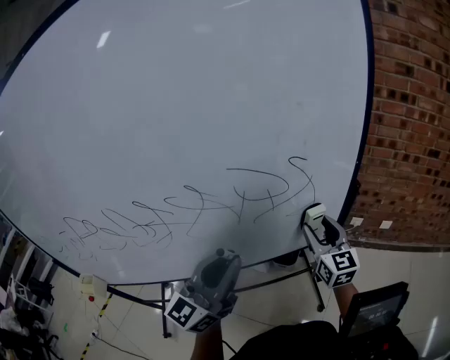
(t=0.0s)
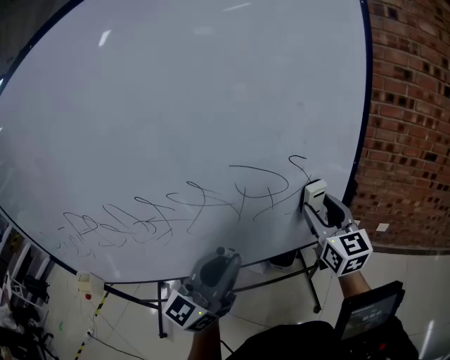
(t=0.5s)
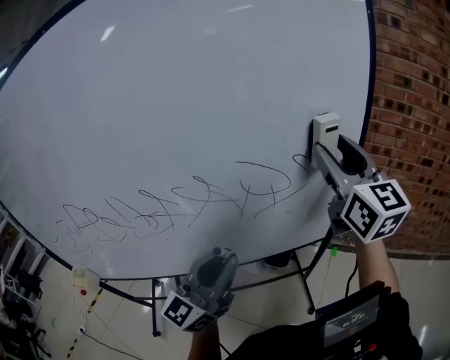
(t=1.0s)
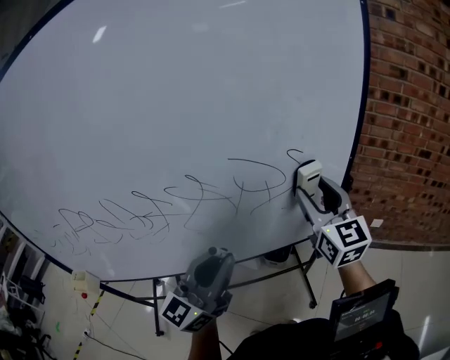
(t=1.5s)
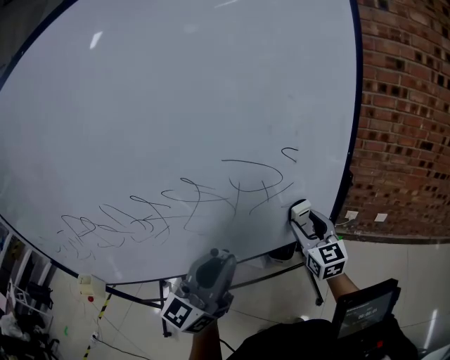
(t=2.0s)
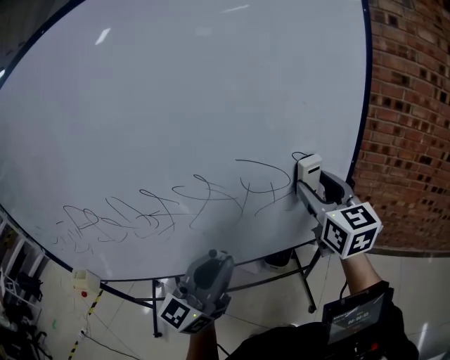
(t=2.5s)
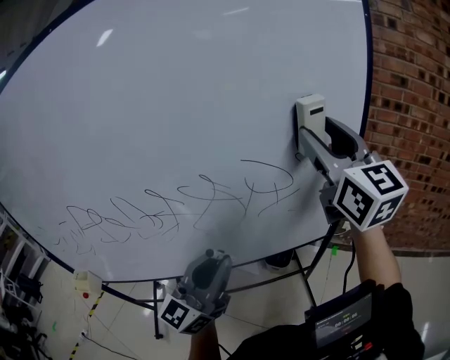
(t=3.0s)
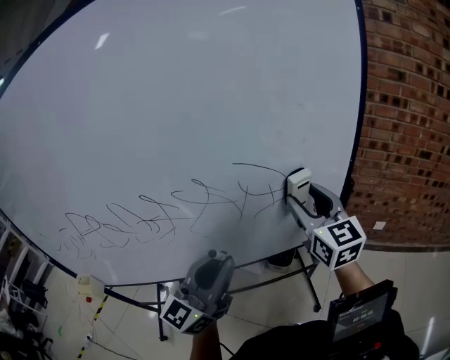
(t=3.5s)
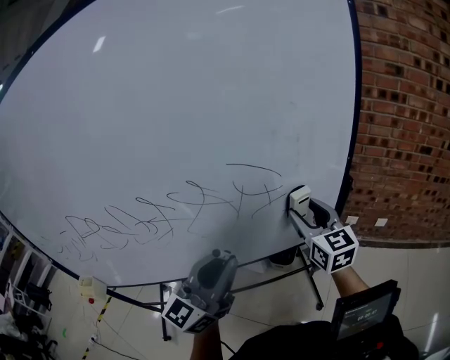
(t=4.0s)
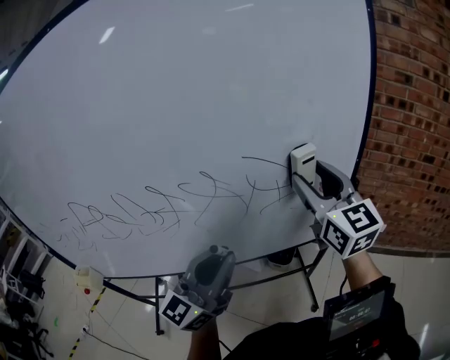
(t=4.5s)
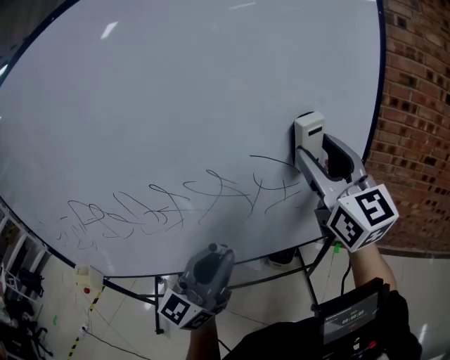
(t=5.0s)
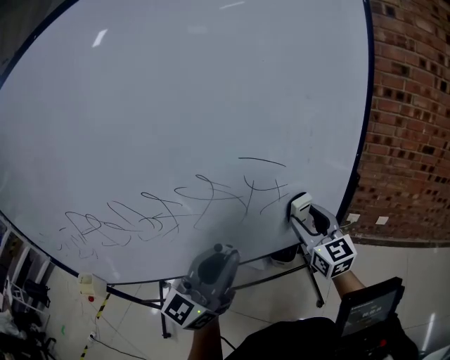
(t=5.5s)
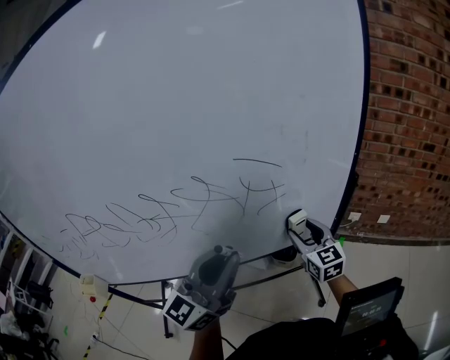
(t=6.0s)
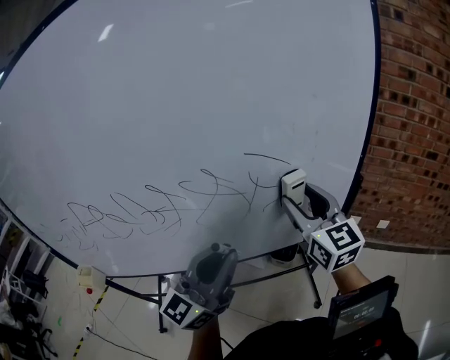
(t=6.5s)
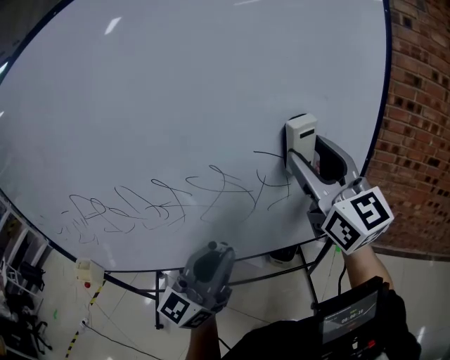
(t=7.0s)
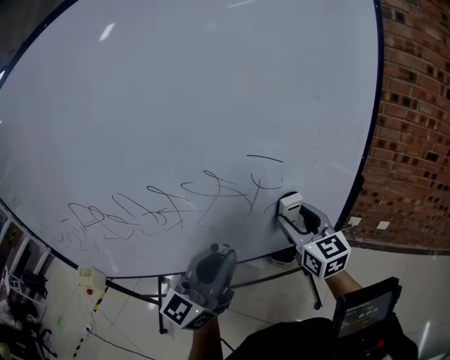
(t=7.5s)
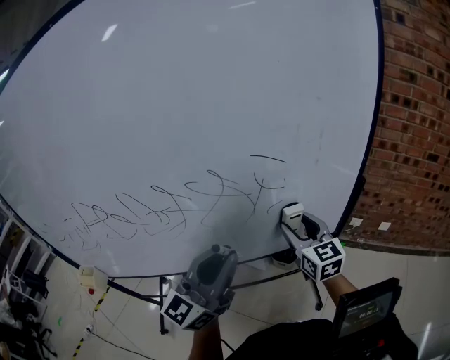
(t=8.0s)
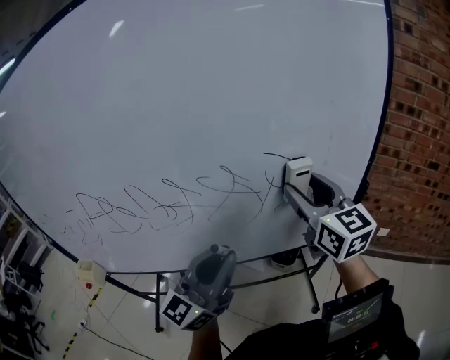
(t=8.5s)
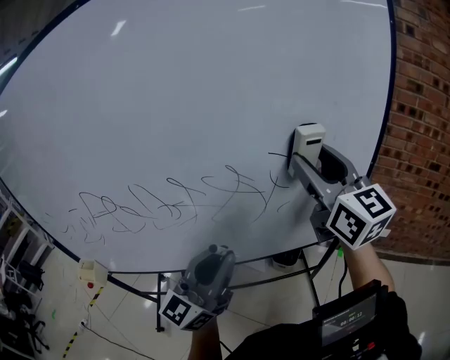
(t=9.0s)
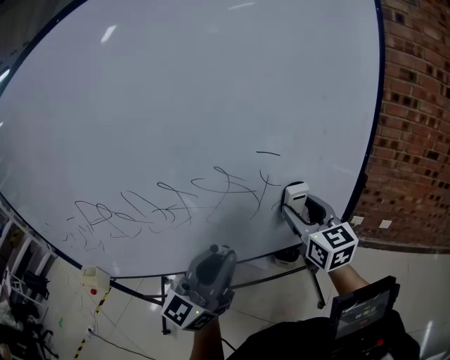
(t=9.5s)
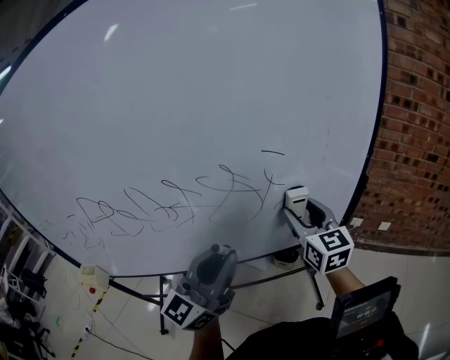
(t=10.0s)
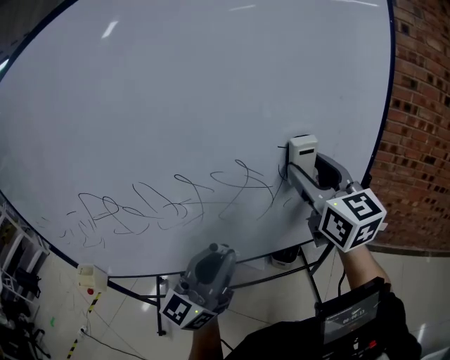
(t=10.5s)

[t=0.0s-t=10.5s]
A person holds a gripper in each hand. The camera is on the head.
t=0.0s to t=2.0s: The right gripper reaches about 25 cm upward, then returns.
t=2.0s to t=4.0s: The right gripper travels upward and back again, some 35 cm each way.
t=4.0s to t=6.5s: The right gripper goes up and down, roughly 30 cm each way, reversing 2 times.
t=6.5s to t=8.5s: The right gripper moves up and down over approximately 25 cm, changing direction 2 times.
t=8.5s to t=10.5s: The right gripper goes up and down, some 20 cm each way, reversing 2 times.

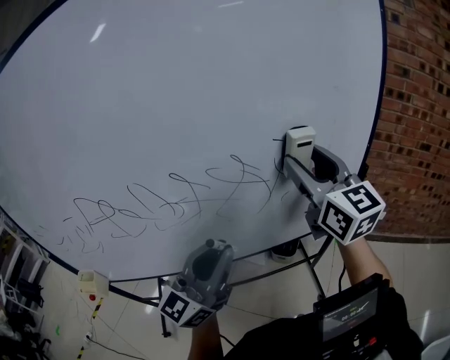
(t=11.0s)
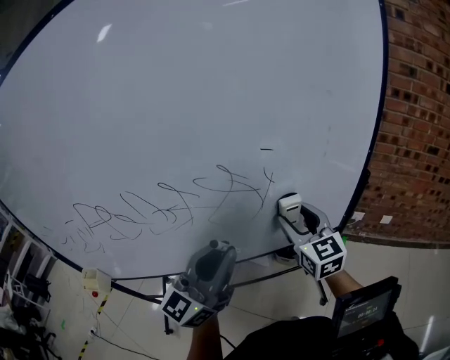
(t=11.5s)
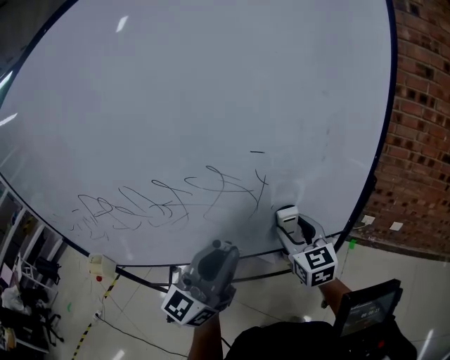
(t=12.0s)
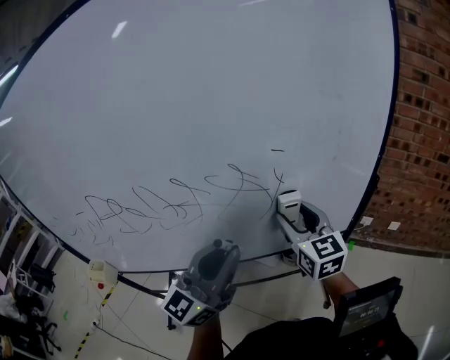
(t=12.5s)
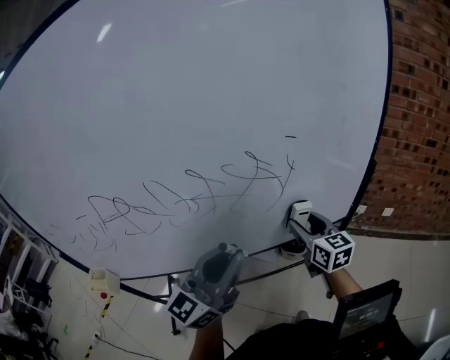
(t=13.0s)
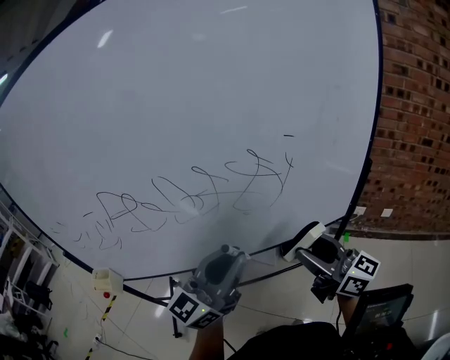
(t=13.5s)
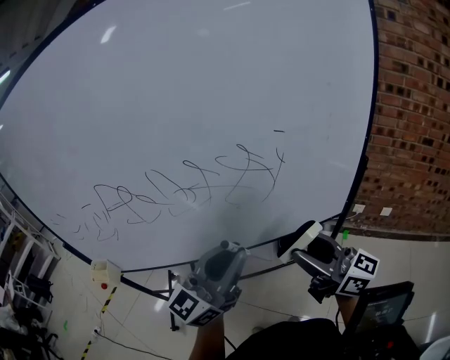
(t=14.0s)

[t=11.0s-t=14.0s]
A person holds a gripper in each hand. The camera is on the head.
t=11.0s to t=12.5s: The right gripper heads downward, covering approximately 15 cm.
t=12.5s to t=14.0s: The right gripper moves backward, about 15 cm, and changes its angle by about 40 degrees, while the left gripper is displaced backward by some 5 cm.

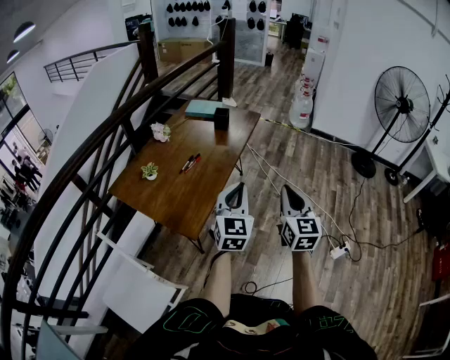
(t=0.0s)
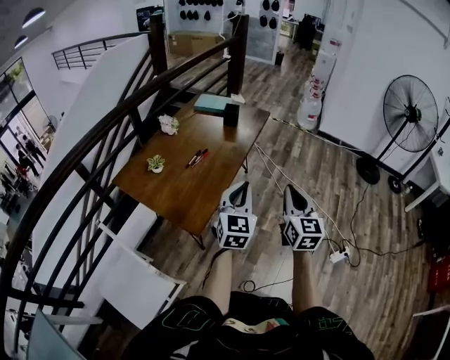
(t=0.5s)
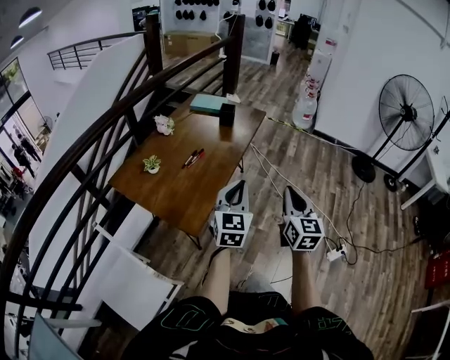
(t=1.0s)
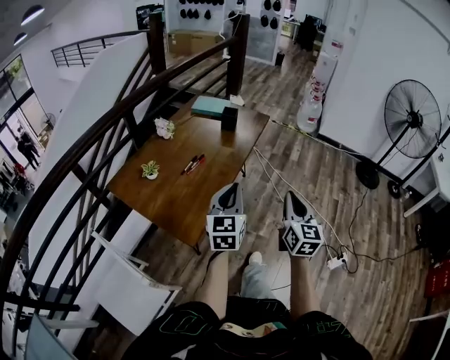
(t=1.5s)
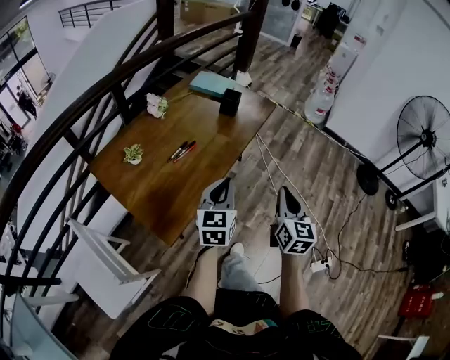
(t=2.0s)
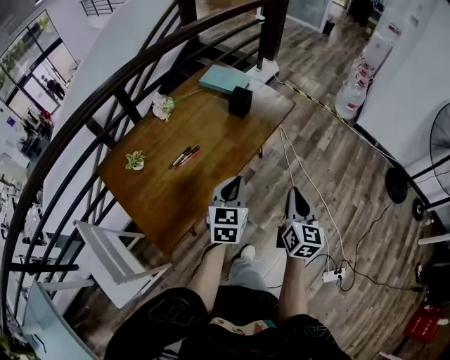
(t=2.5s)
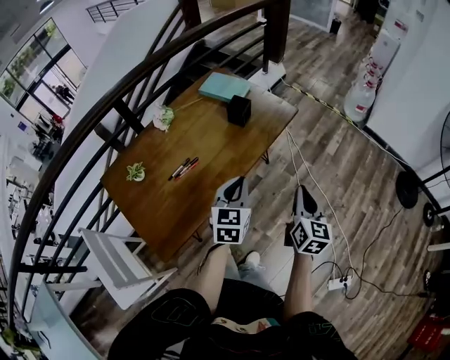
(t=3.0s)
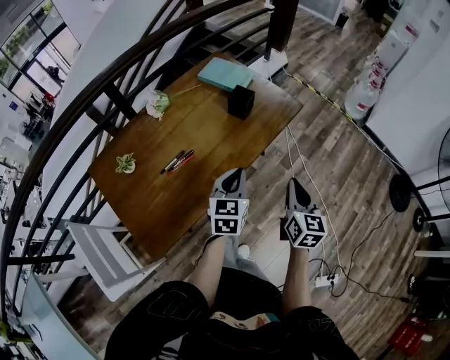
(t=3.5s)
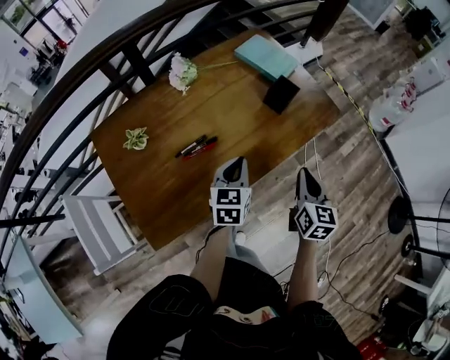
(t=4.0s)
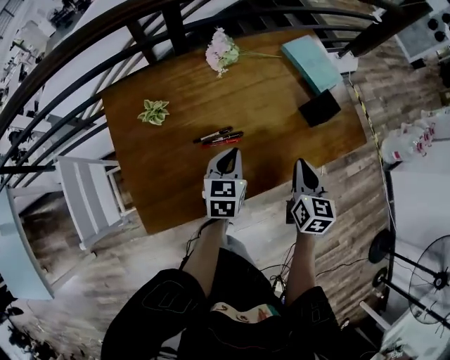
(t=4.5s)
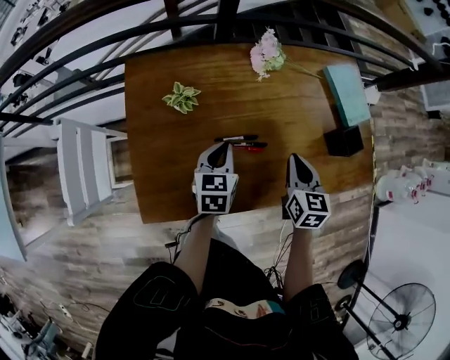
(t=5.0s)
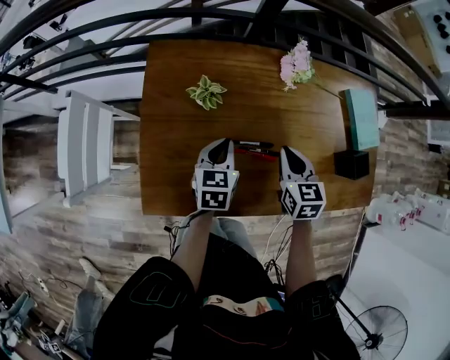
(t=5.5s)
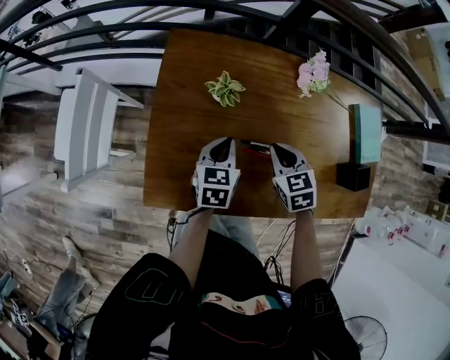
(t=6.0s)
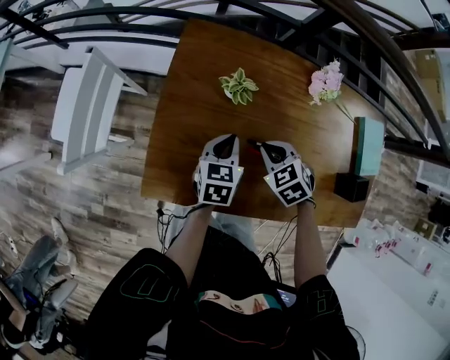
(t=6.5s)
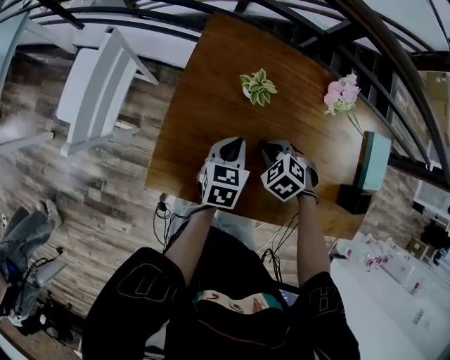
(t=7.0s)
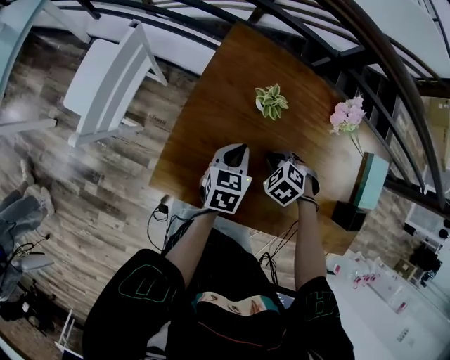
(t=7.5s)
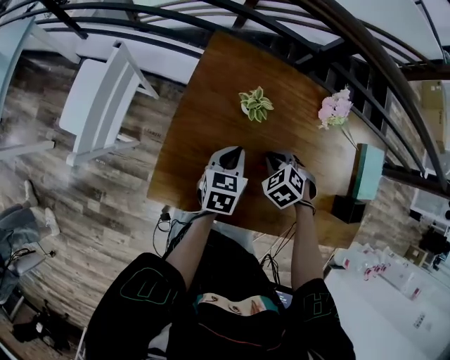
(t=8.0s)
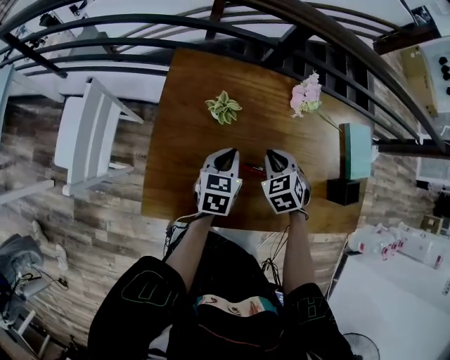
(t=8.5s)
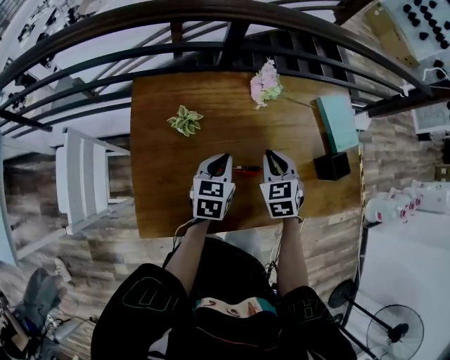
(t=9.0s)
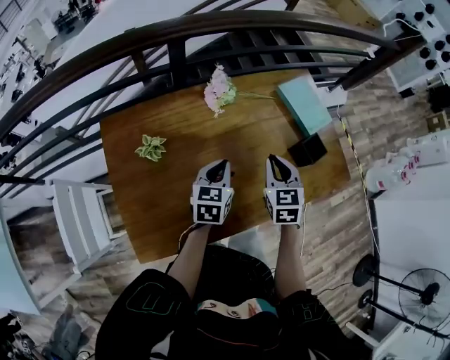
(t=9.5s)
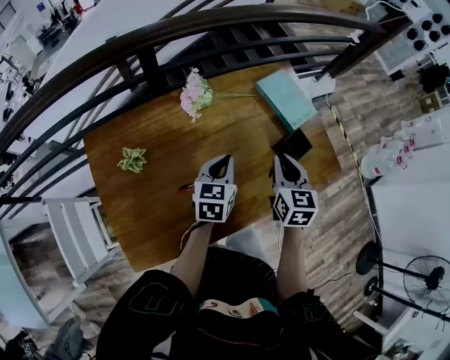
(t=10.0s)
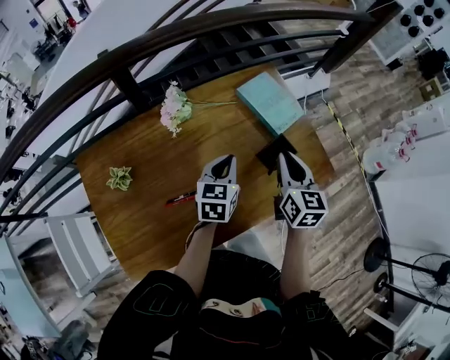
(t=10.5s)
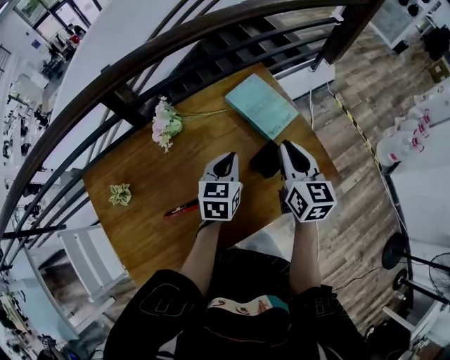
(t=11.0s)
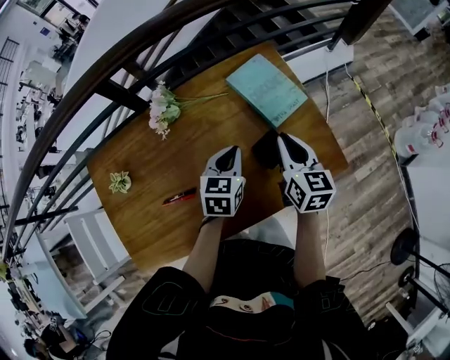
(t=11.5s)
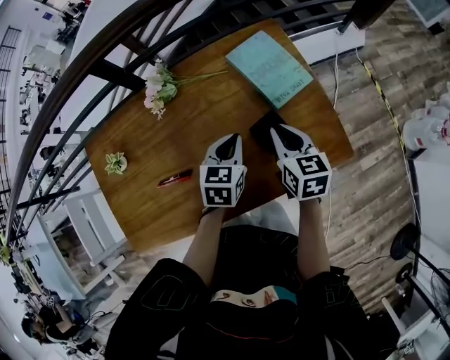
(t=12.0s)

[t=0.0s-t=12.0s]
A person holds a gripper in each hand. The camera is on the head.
t=0.0s to t=2.0s: The right gripper shifts approximately 15 cm forward; the left gripper is displaced forward and downward by about 15 cm, and changes its angle by roughly 20 degrees.
t=2.0s to t=4.0s: The right gripper travels forward by roughly 30 cm, and turns by roughly 20 degrees, while the left gripper heads forward and downward, covering some 25 cm, and swivels roughly 30 degrees.
t=4.0s to t=6.0s: The right gripper shifts by about 40 cm, and swivels about 70 degrees. The left gripper changes place by some 30 cm, and swivels roughly 40 degrees.
t=6.0s to t=8.0s: The right gripper ends up some 10 cm from where it was, and rotates about 40 degrees.
t=8.0s to t=10.0s: The right gripper changes place by approximately 40 cm, and angles its fingers upward, by some 50 degrees. The left gripper changes place by roughly 30 cm, and swivels roughly 40 degrees.
t=10.0s to t=12.0s: The left gripper travels to the right and forward by approximately 20 cm, while the right gripper travels to the right, forward and downward by roughly 15 cm, and swivels about 20 degrees.

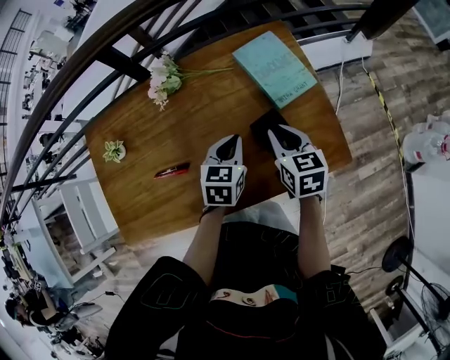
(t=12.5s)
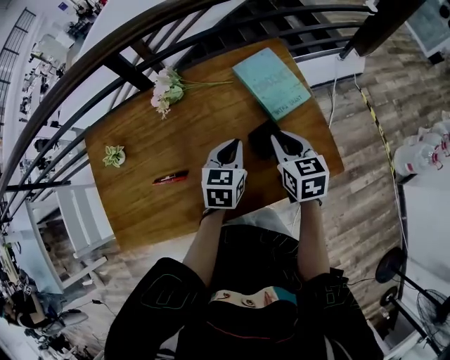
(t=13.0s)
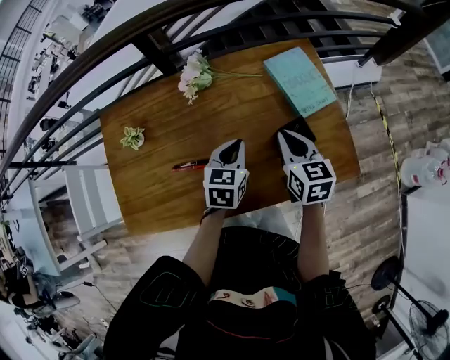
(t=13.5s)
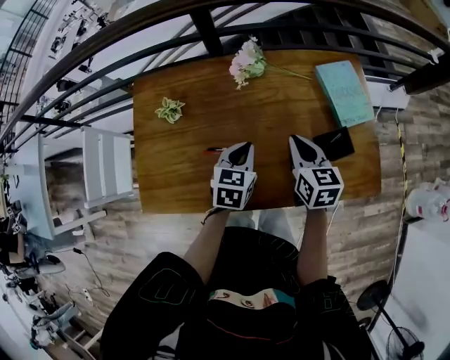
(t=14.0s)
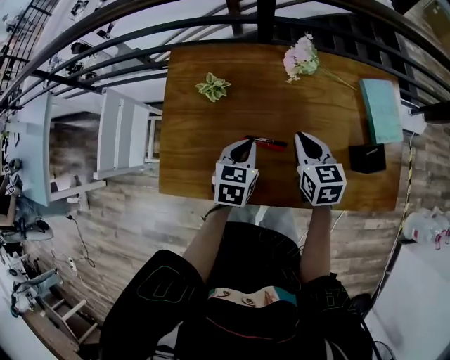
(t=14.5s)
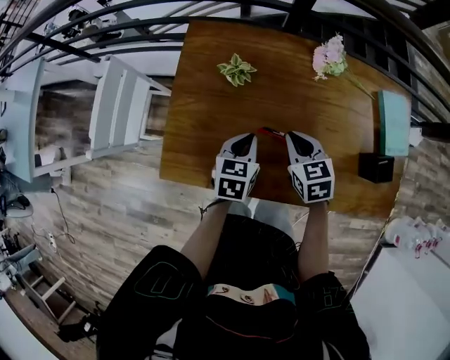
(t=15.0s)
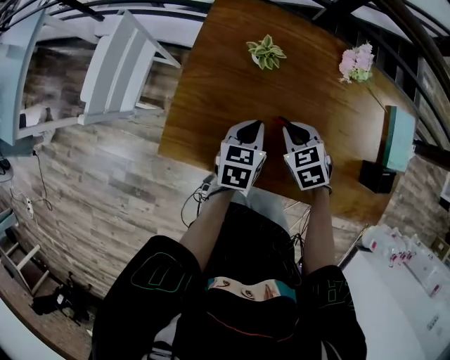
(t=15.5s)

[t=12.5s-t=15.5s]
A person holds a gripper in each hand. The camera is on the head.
t=12.5s to t=14.0s: Both grippers move to the left, approximately 20 cm.
t=14.0s to t=15.5s: The left gripper moves to the left, some 25 cm, and swivels some 30 degrees. Meanwhile the right gripper travels to the left and downward by roughly 30 cm, and changes its angle by roughly 60 degrees.
